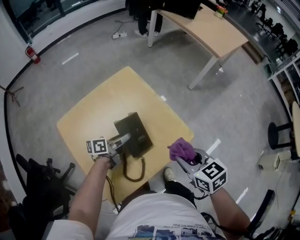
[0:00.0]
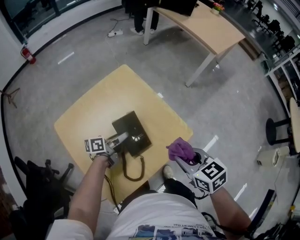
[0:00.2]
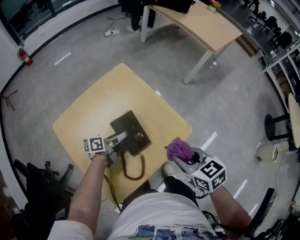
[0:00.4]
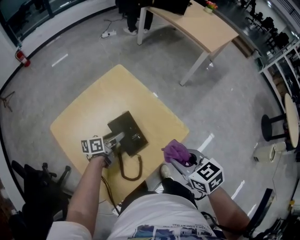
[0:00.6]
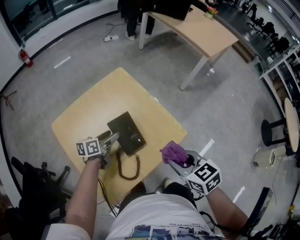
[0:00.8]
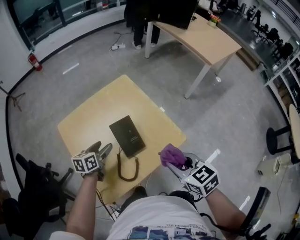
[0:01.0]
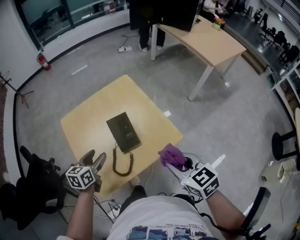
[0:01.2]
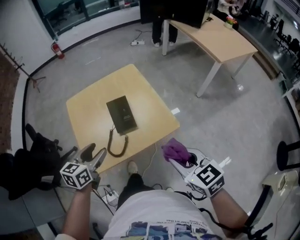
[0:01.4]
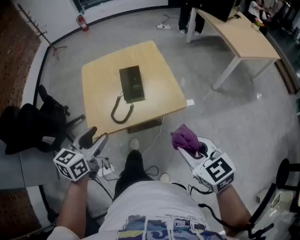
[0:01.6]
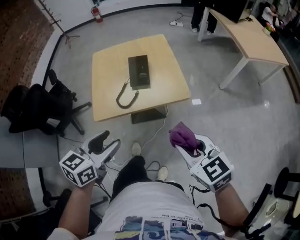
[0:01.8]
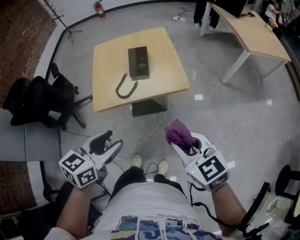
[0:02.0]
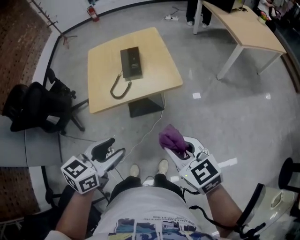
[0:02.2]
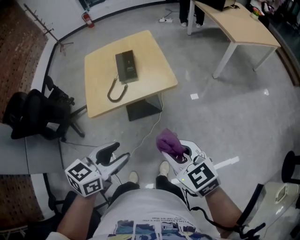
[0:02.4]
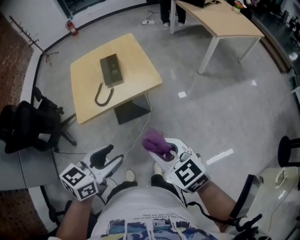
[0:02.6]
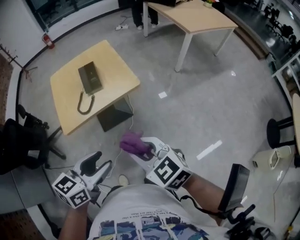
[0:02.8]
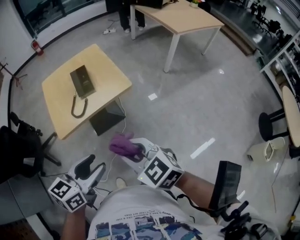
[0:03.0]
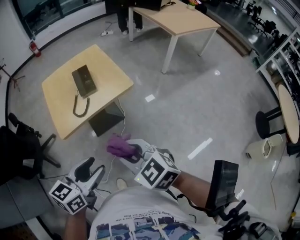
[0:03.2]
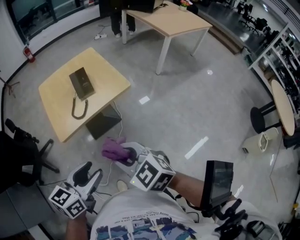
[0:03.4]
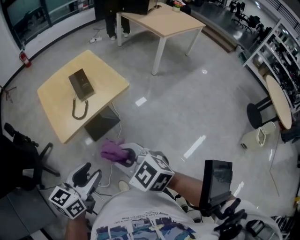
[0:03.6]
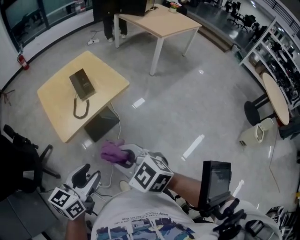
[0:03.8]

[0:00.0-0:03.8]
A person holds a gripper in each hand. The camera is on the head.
0:00.0 to 0:01.2: The right gripper changes place by roughly 5 cm, while the left gripper shifts some 15 cm backward, to the left and upward, turns by some 40 degrees, and opens its fingers.
0:01.2 to 0:02.6: The right gripper travels backward by about 20 cm, and changes its angle by about 20 degrees; the left gripper heads backward, to the right and upward, covering about 40 cm.
0:02.6 to 0:03.8: The left gripper goes some 10 cm to the left and backward. Meanwhile the right gripper travels to the left by about 15 cm.

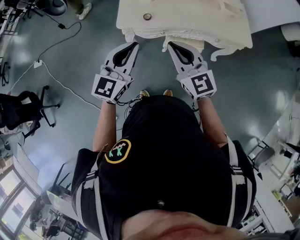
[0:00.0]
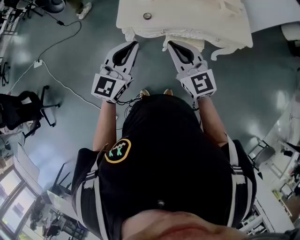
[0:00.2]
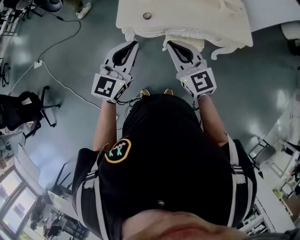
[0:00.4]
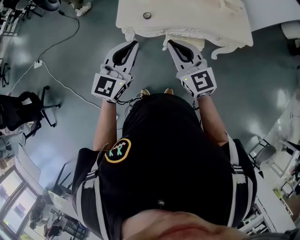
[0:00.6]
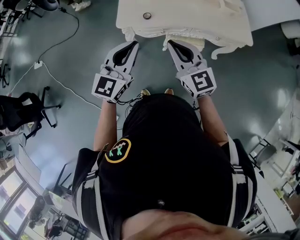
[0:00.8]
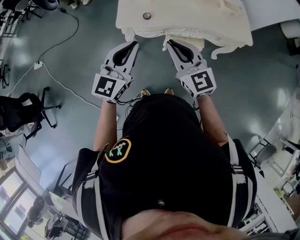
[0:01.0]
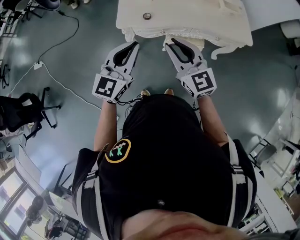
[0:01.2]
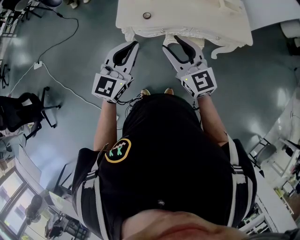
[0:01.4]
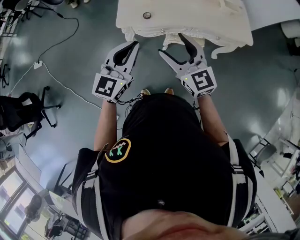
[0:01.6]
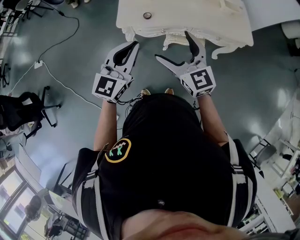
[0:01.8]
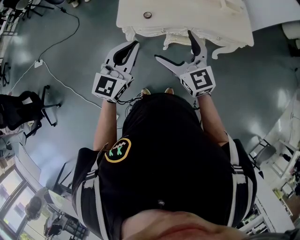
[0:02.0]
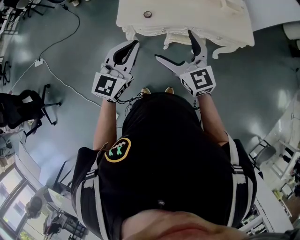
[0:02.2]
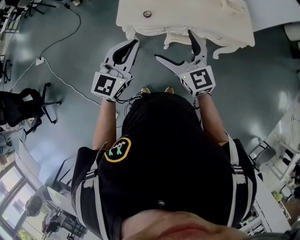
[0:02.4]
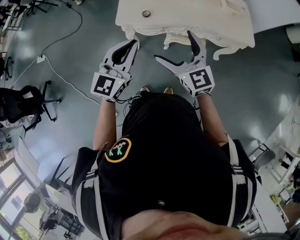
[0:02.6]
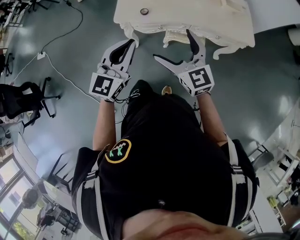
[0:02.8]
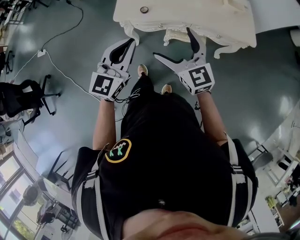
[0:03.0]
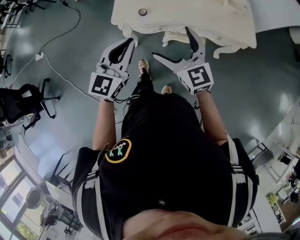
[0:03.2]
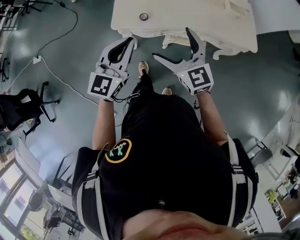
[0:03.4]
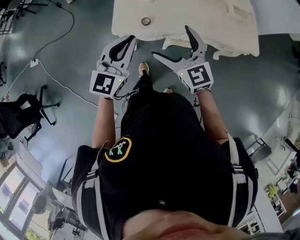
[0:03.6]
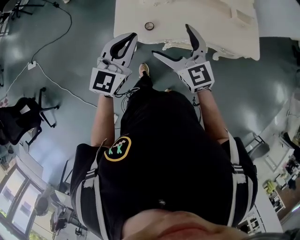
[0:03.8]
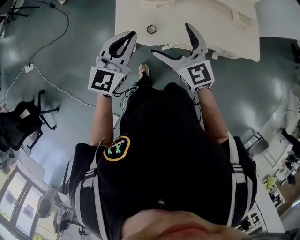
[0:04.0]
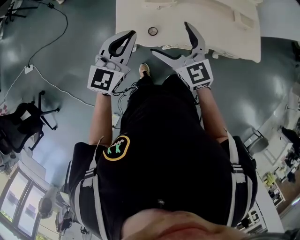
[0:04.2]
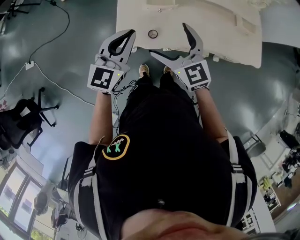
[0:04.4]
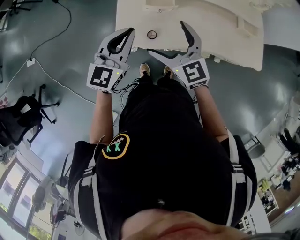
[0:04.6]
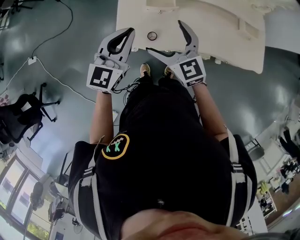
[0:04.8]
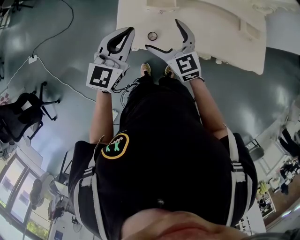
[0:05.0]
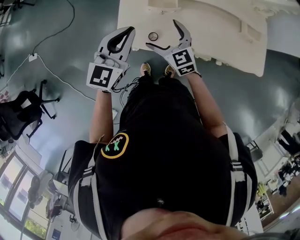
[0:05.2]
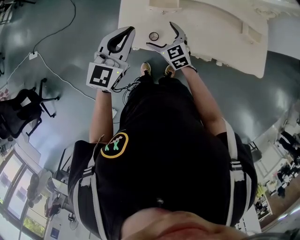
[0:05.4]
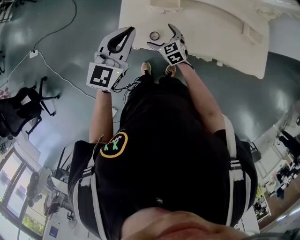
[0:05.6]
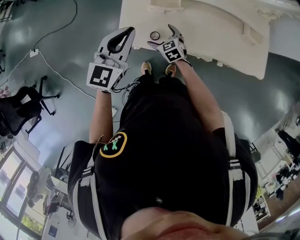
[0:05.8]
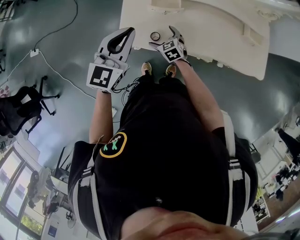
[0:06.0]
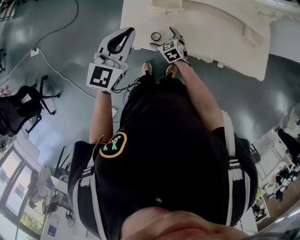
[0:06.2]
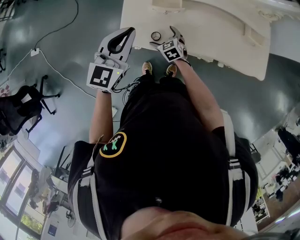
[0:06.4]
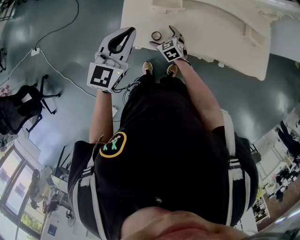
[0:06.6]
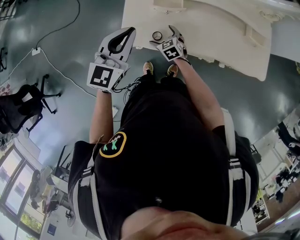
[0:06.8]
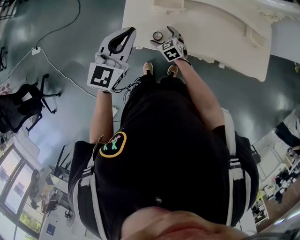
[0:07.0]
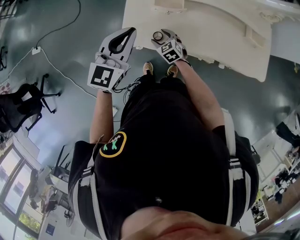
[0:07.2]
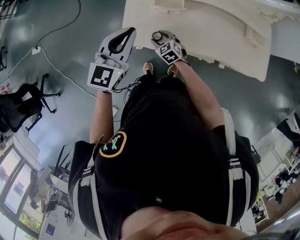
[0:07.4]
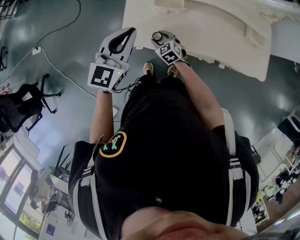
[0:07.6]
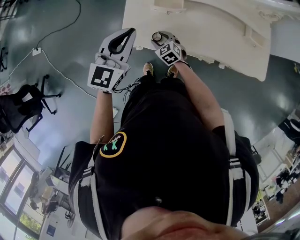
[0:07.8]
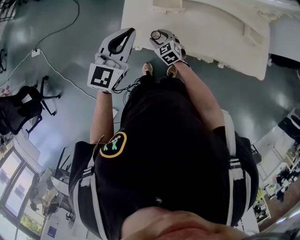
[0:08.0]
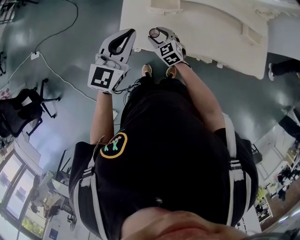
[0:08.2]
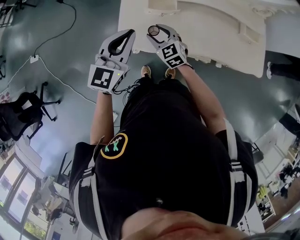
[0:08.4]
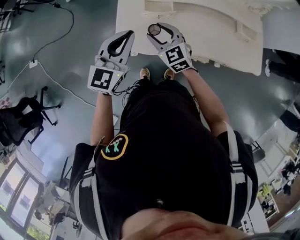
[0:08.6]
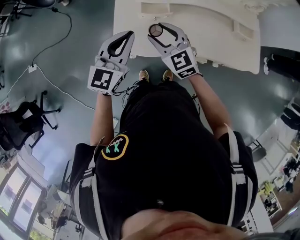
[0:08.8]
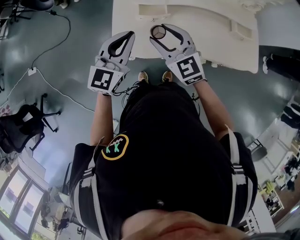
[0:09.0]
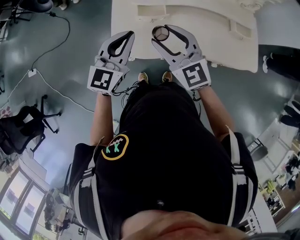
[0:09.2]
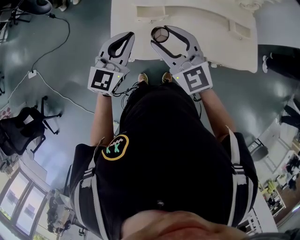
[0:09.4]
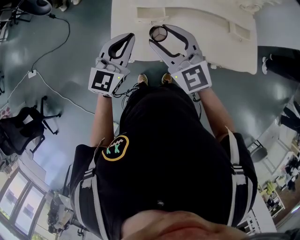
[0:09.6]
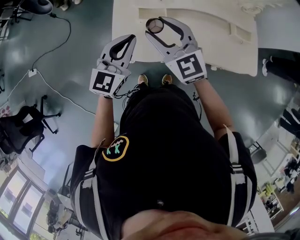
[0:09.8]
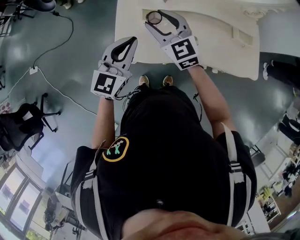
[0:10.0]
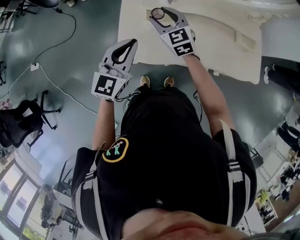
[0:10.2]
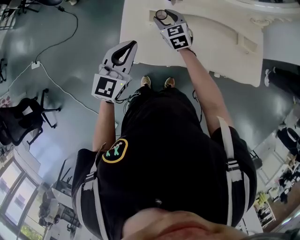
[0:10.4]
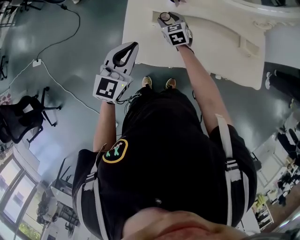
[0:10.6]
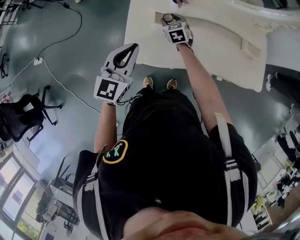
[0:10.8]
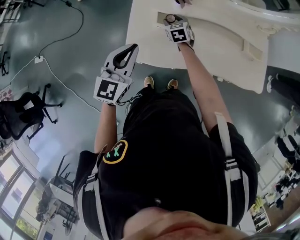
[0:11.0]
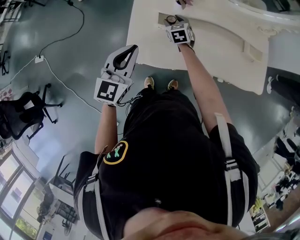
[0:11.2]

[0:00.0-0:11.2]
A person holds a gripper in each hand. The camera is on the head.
0:00.0 to 0:01.6: The right gripper opens up.
0:01.6 to 0:03.2: The right gripper changes place by approximately 5 cm, and opens its fingers.
0:03.2 to 0:04.8: Both grippers move forward, approximately 25 cm.
0:04.8 to 0:06.4: The right gripper moves downward, some 25 cm, and rotates roughly 30 degrees.
0:06.4 to 0:08.0: The right gripper closes its fingers.
0:08.0 to 0:09.6: The left gripper shifts by roughly 5 cm, while the right gripper goes some 30 cm upward, and swivels about 30 degrees.
0:09.6 to 0:11.2: The right gripper travels downward and forward by about 35 cm, and rotates about 40 degrees. The left gripper is displaced to the left by roughly 5 cm.

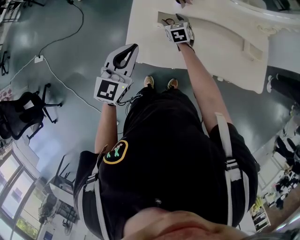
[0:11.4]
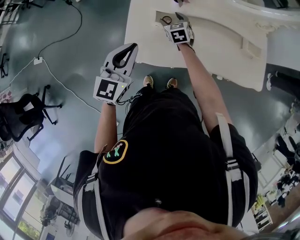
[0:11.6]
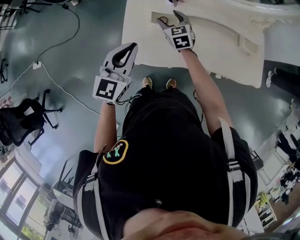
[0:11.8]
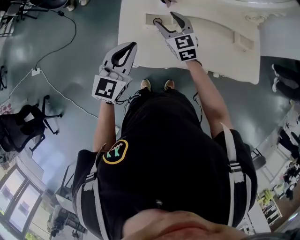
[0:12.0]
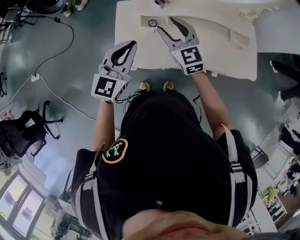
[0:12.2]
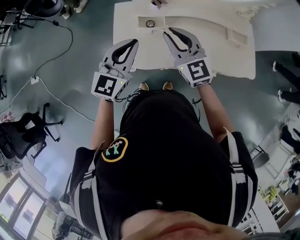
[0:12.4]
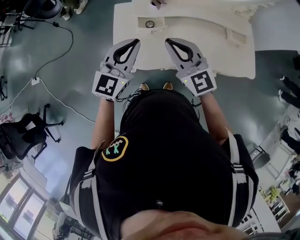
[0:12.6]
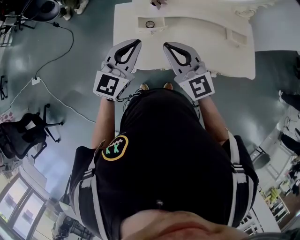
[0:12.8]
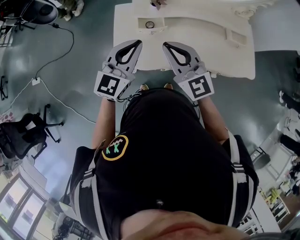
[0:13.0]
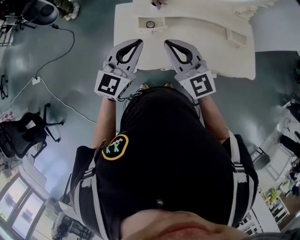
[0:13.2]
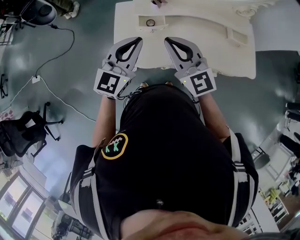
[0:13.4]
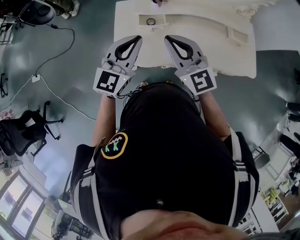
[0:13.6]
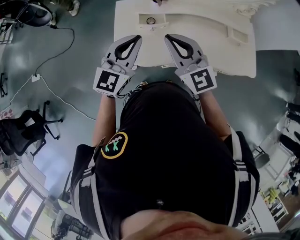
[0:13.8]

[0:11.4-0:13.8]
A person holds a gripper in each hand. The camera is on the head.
0:11.4 to 0:12.6: The left gripper shifts roughly 5 cm to the right; the right gripper heads upward and backward, covering some 35 cm, points its fingers approximately 40 degrees further upward, and closes up.
0:12.6 to 0:13.8: The grippers make only small movements.

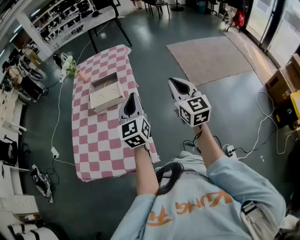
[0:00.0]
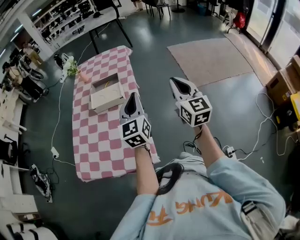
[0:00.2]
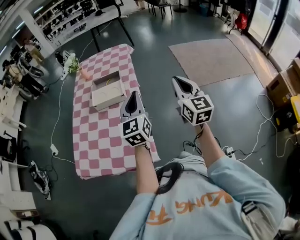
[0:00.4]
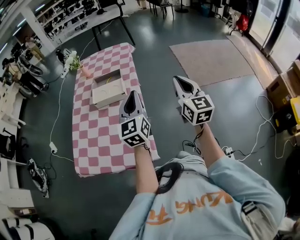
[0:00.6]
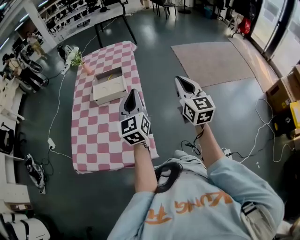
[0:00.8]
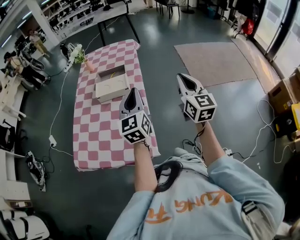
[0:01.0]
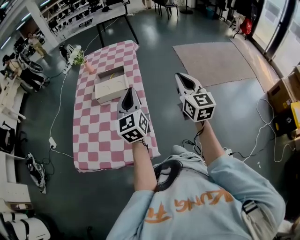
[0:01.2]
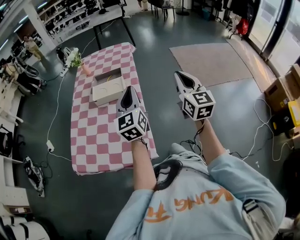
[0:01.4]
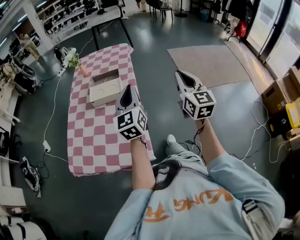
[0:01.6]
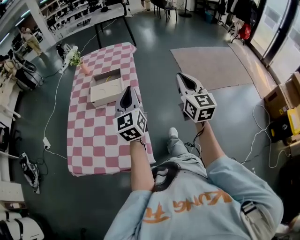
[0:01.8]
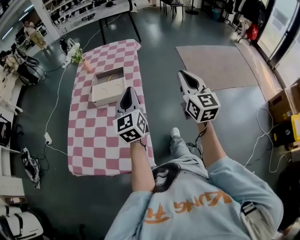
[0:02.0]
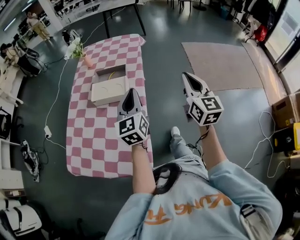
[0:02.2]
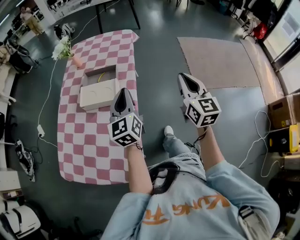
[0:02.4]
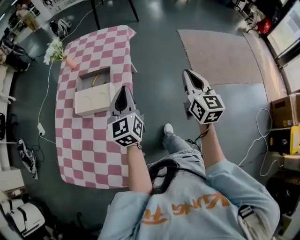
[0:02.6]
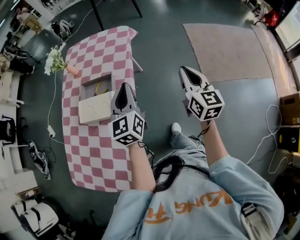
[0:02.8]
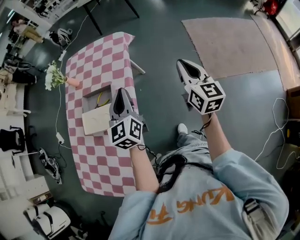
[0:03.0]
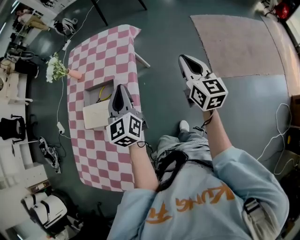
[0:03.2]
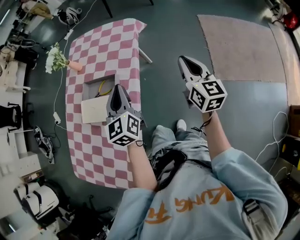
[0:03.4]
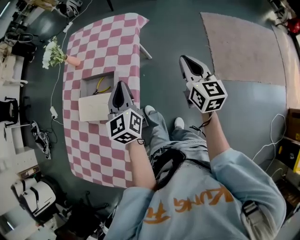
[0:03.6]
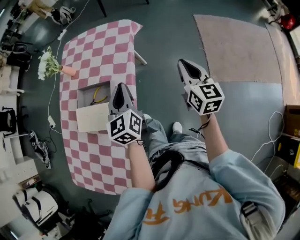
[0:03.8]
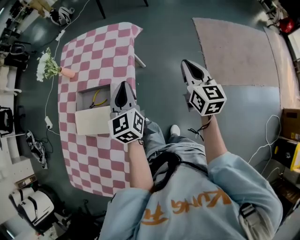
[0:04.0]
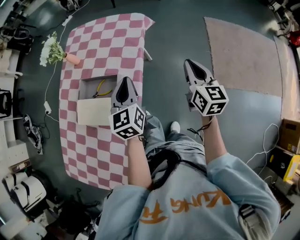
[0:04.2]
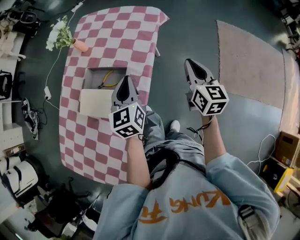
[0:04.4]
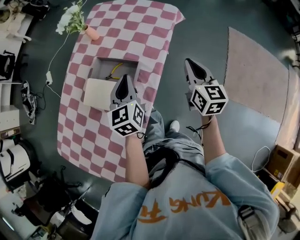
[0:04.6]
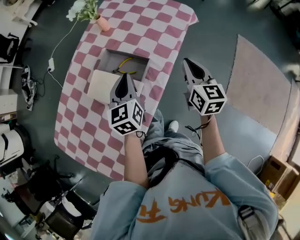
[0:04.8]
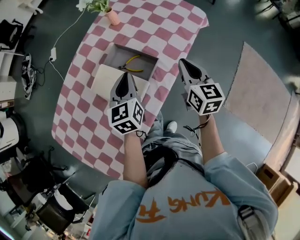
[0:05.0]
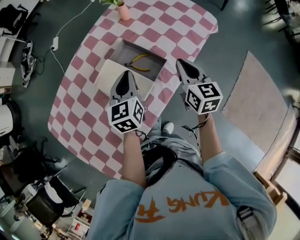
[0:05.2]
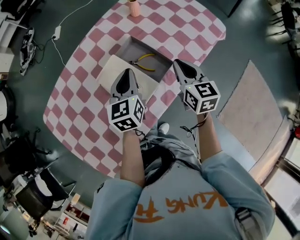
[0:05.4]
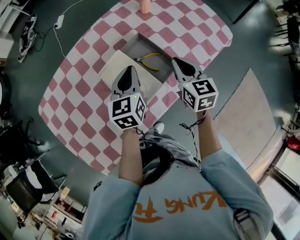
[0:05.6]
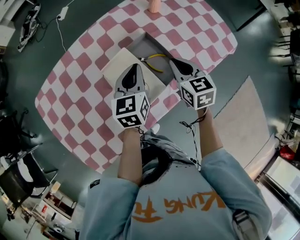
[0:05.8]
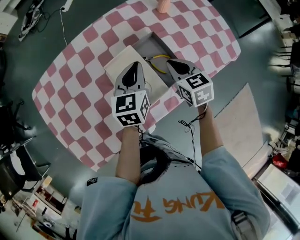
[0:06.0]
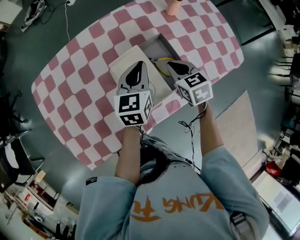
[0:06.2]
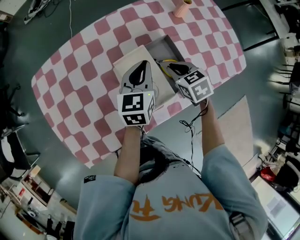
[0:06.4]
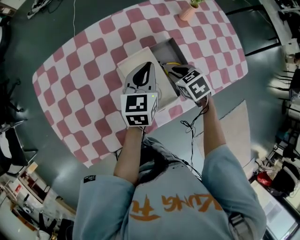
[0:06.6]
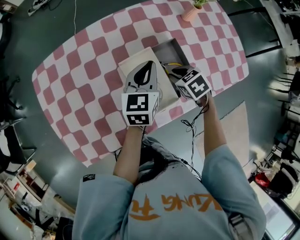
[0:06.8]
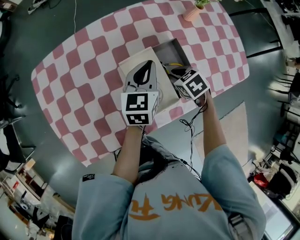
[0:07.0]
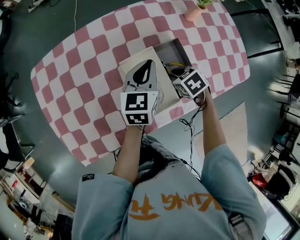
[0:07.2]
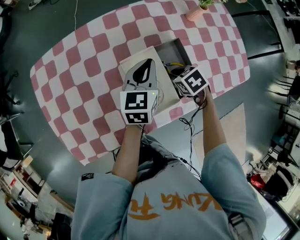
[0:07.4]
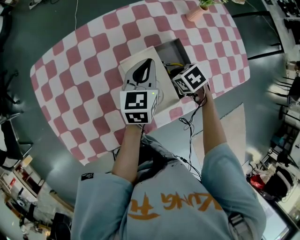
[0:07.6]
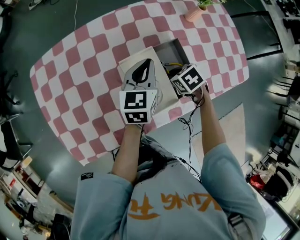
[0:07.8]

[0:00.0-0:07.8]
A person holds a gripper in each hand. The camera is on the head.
0:00.0 to 0:01.6: The grippers make only small movements.
0:01.6 to 0:03.2: Both grippers move forward, about 35 cm. The right gripper rotates some 20 degrees.
0:03.2 to 0:04.6: The left gripper moves to the left, downward and forward, roughly 15 cm, while the right gripper is displaced to the left, forward and downward by approximately 20 cm, and rotates approximately 20 degrees.
0:04.6 to 0:06.2: The right gripper changes place by roughly 35 cm, and changes its angle by about 70 degrees, while the left gripper shifts by about 20 cm, and rotates about 30 degrees.
0:06.2 to 0:07.8: The right gripper heads downward, covering about 10 cm, and turns by about 30 degrees.
